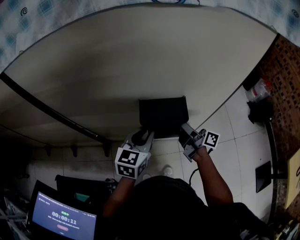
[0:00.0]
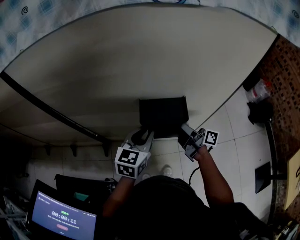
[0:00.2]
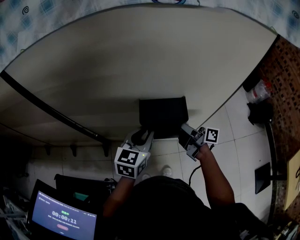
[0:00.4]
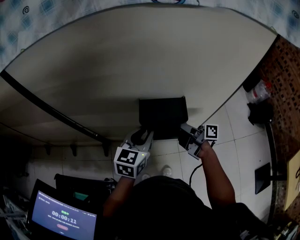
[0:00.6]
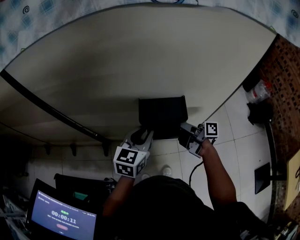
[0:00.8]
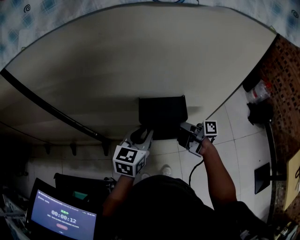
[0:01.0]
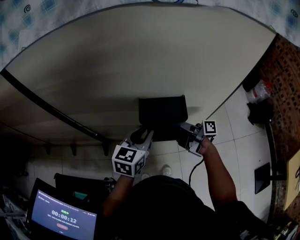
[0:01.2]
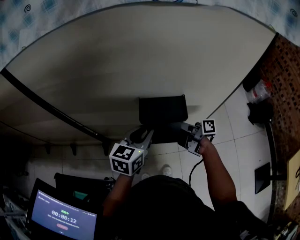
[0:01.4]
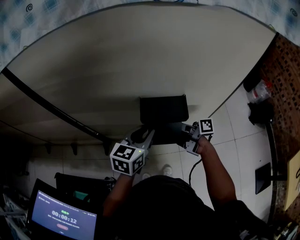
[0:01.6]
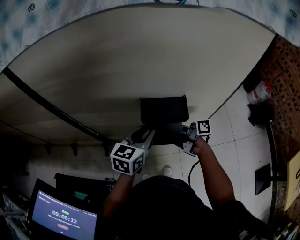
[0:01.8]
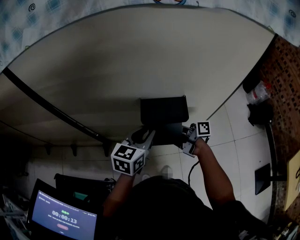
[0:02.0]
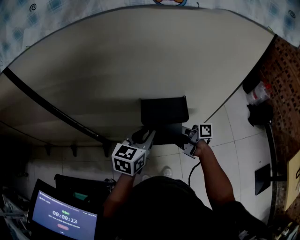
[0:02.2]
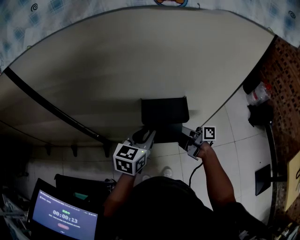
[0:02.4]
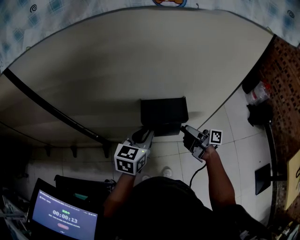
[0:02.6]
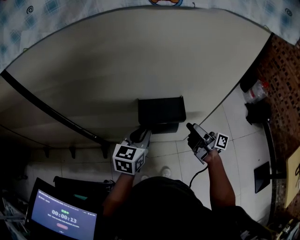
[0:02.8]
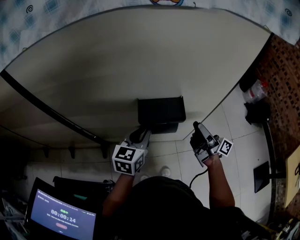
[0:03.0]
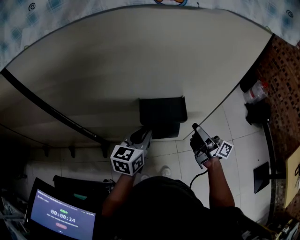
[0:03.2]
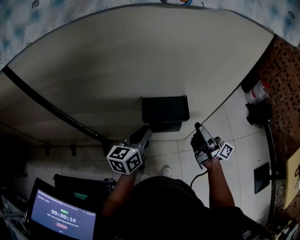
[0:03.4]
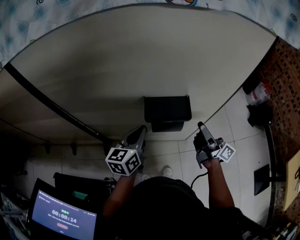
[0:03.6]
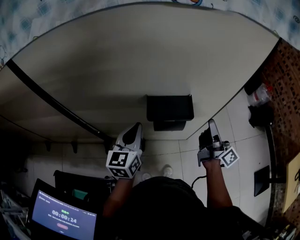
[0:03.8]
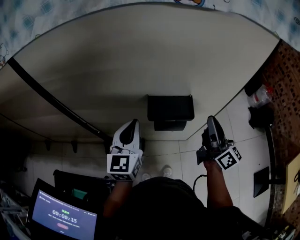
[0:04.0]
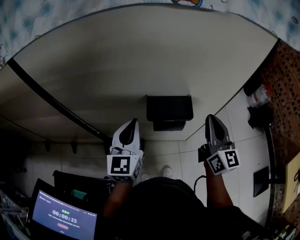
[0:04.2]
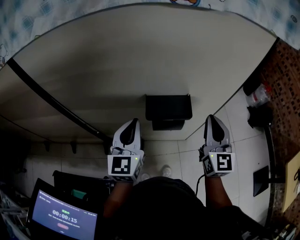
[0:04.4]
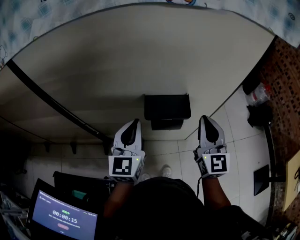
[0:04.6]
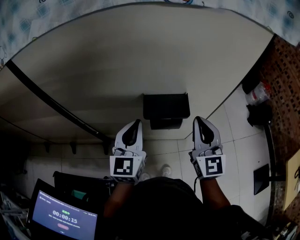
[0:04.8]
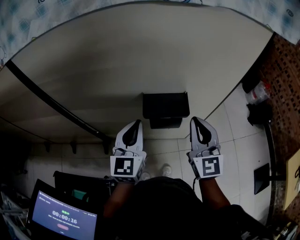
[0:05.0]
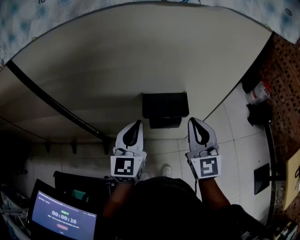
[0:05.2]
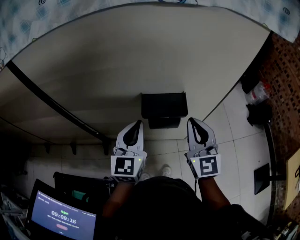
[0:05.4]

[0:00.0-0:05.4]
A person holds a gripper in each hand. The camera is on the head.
0:00.0 to 0:01.4: The right gripper rotates some 30 degrees.
0:01.4 to 0:02.8: The right gripper goes roughly 10 cm to the right, and swivels about 20 degrees.
0:02.8 to 0:04.0: The left gripper shifts roughly 10 cm upward and to the left, and rotates some 20 degrees. The right gripper is displaced upward by about 10 cm, twists roughly 40 degrees counterclockwise, seen from behind, and closes.
0:04.0 to 0:05.4: The right gripper travels to the left by approximately 10 cm, and rotates around the line of its fingers by some 50 degrees, counterclockwise from behind.

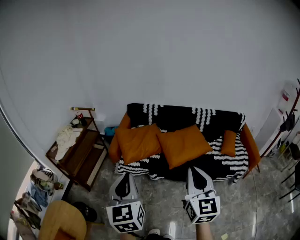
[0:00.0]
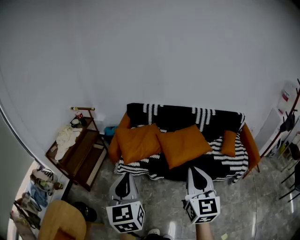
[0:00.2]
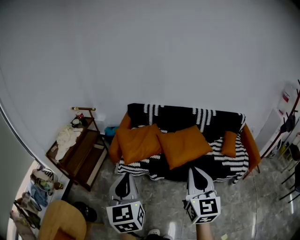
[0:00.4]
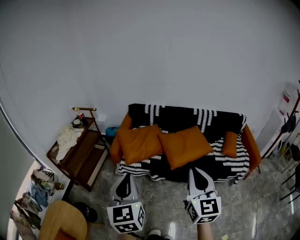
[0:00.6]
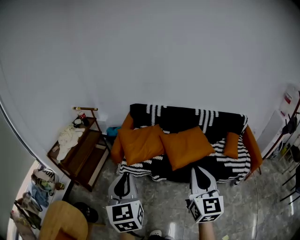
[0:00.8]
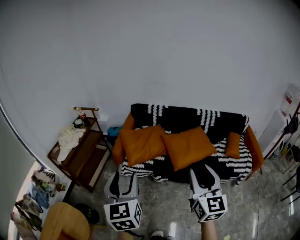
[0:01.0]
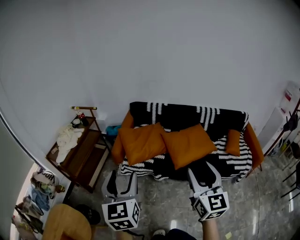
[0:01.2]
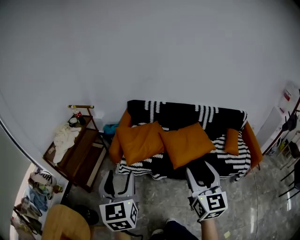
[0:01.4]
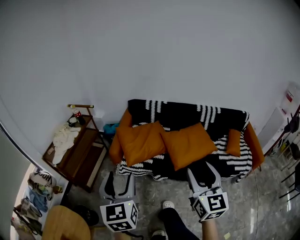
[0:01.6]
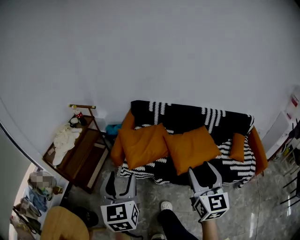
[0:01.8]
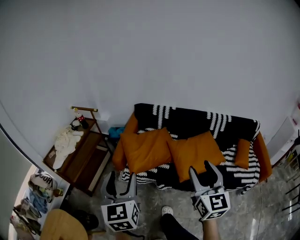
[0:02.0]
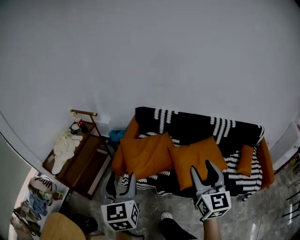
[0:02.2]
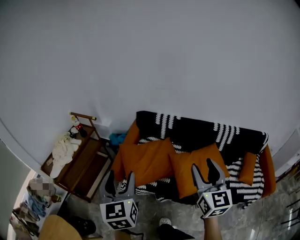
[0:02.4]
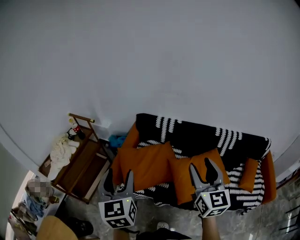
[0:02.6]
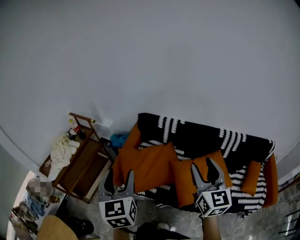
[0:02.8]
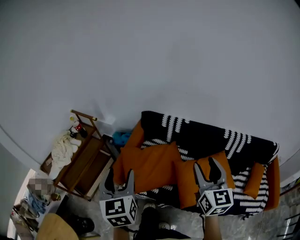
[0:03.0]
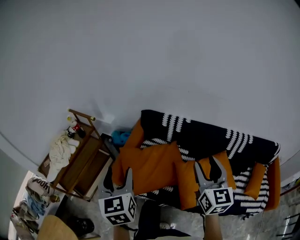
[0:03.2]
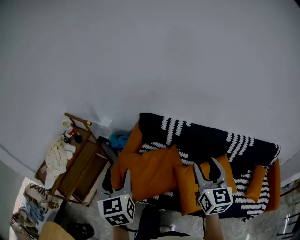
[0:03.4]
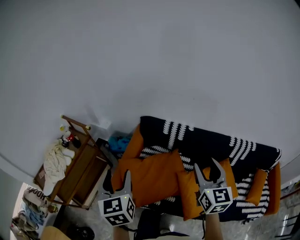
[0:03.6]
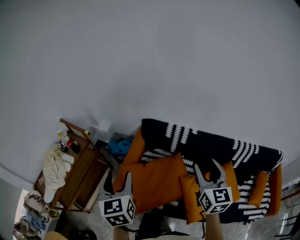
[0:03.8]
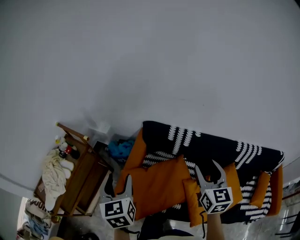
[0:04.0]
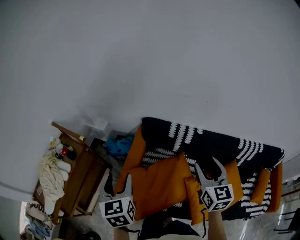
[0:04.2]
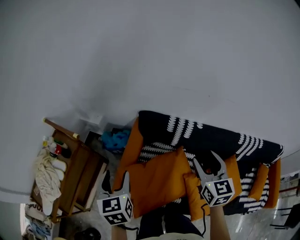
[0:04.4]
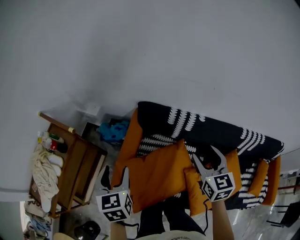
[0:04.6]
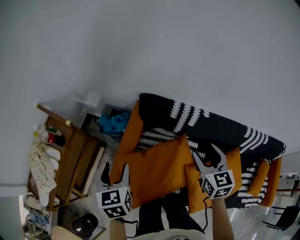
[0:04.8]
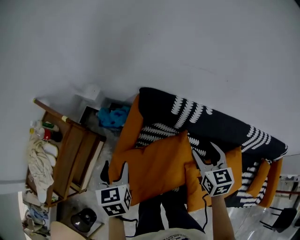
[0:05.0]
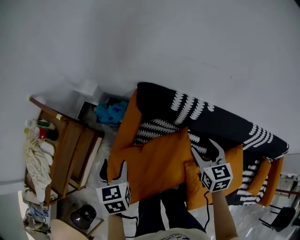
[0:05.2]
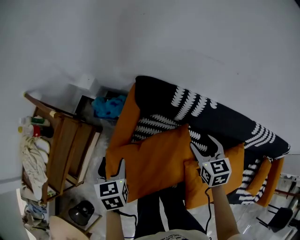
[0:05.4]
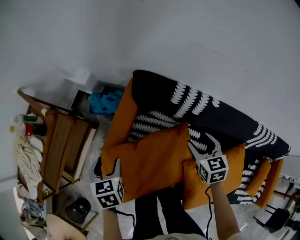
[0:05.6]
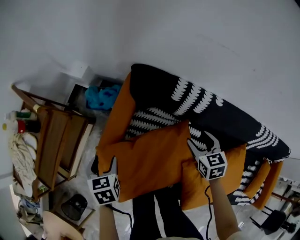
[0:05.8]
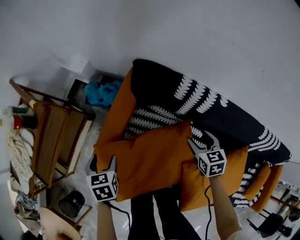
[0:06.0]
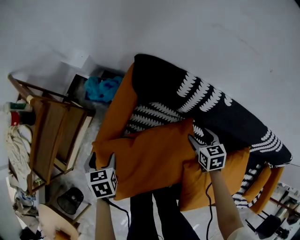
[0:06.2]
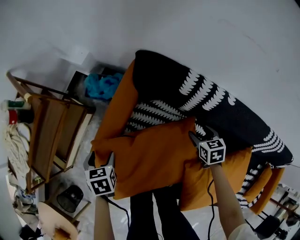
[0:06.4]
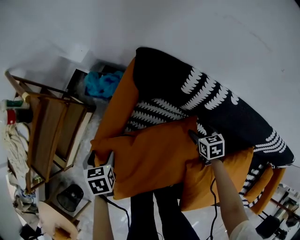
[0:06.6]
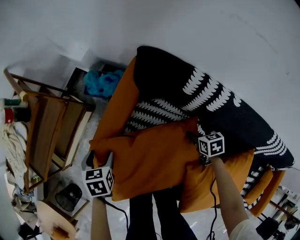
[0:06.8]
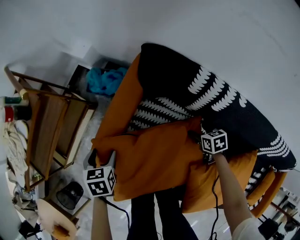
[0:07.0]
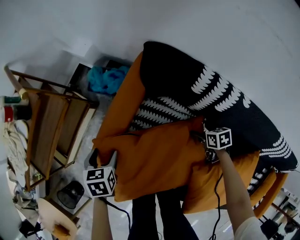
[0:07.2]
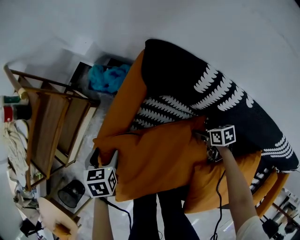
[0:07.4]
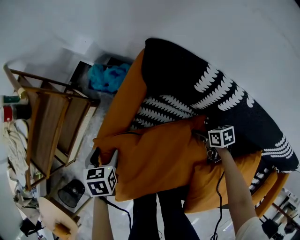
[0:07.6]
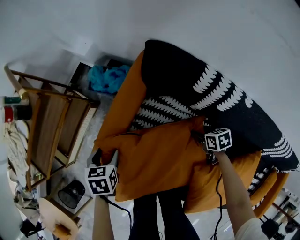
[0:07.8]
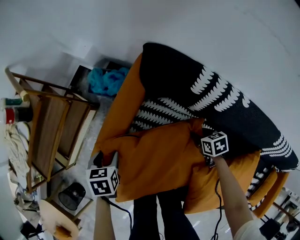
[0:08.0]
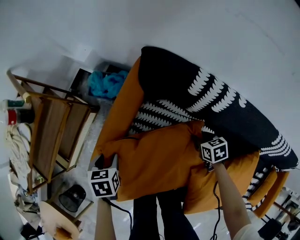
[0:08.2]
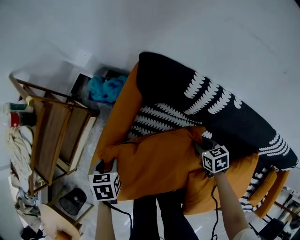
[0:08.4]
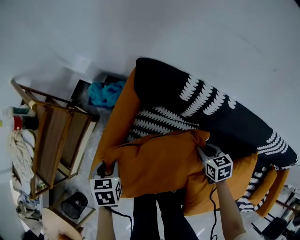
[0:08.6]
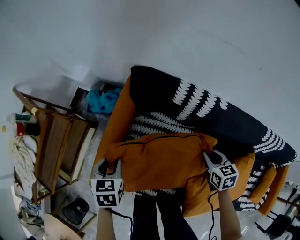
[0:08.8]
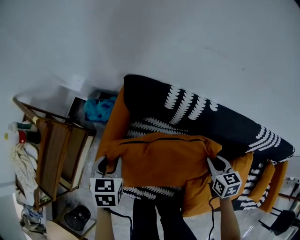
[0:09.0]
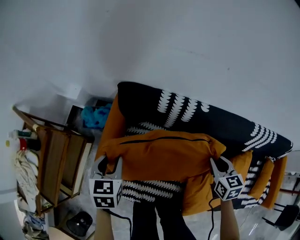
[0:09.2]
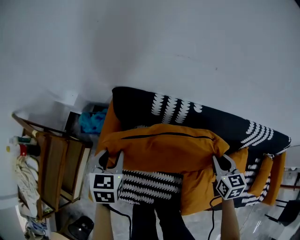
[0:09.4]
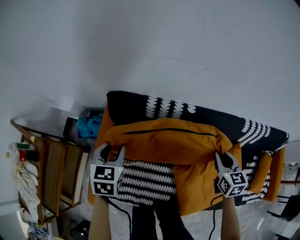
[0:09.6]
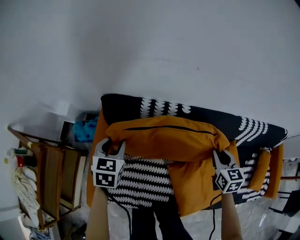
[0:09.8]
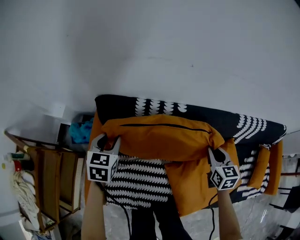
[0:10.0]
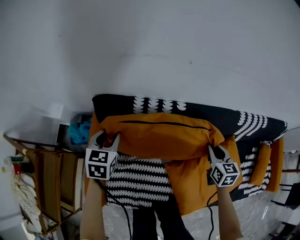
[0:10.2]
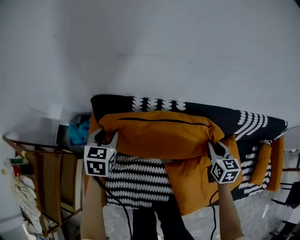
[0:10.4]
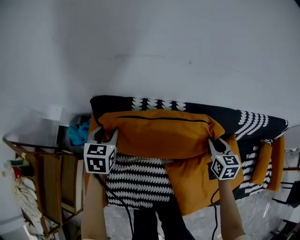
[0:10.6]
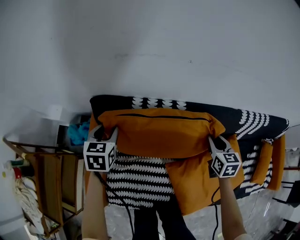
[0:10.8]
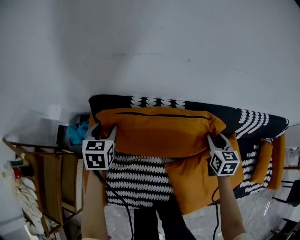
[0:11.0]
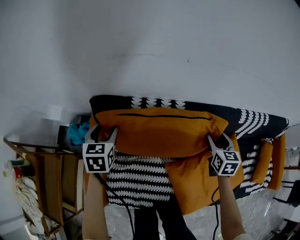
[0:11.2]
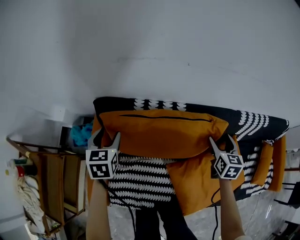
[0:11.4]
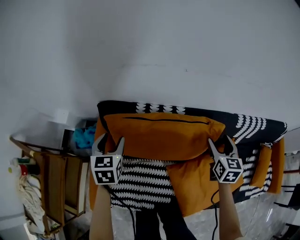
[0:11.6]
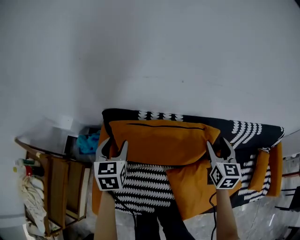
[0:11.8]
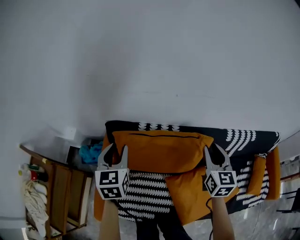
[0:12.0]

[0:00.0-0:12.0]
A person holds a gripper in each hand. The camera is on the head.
0:00.0 to 0:01.6: The right gripper moves forward, about 10 cm, and opens its fingers. Meanwhile the left gripper moves forward and to the left, approximately 10 cm, and opens.
0:01.6 to 0:03.0: Both grippers travel together forward, roughly 35 cm.
0:03.0 to 0:04.4: The right gripper moves forward, roughly 30 cm. The left gripper heads forward and downward, covering roughly 35 cm.
0:04.4 to 0:06.0: Both grippers move downward, approximately 30 cm. The right gripper swivels some 30 degrees; the left gripper changes its angle by roughly 30 degrees.
0:06.0 to 0:07.6: The right gripper travels downward by approximately 20 cm, and turns by about 30 degrees. Meanwhile the left gripper moves downward, about 10 cm.
0:07.6 to 0:09.0: The left gripper heads upward, covering some 15 cm, changes its angle by approximately 20 degrees, and closes up. The right gripper is displaced upward by some 25 cm, turns by some 40 degrees, and closes its fingers.
0:09.0 to 0:10.4: The right gripper shifts approximately 15 cm to the right and forward, and swivels some 20 degrees. The left gripper goes approximately 20 cm forward and to the right, and turns by roughly 20 degrees.
0:10.4 to 0:12.0: Both grippers move upward, approximately 20 cm. The right gripper opens and closes again.

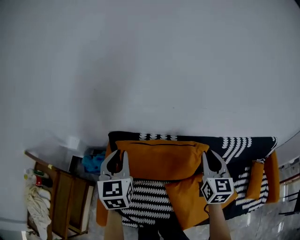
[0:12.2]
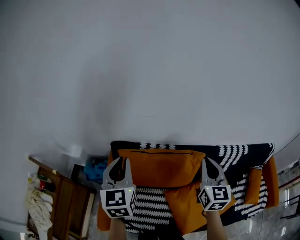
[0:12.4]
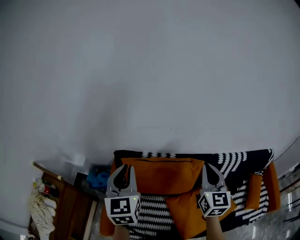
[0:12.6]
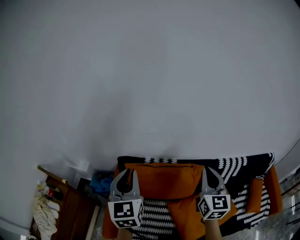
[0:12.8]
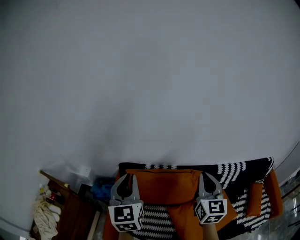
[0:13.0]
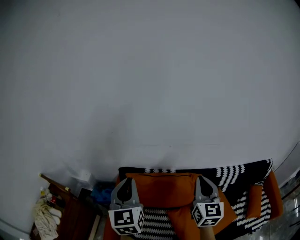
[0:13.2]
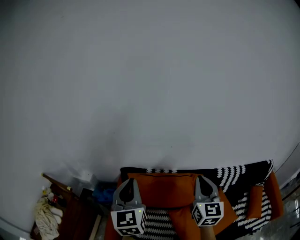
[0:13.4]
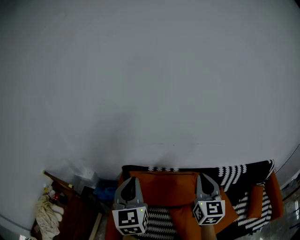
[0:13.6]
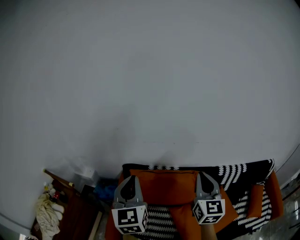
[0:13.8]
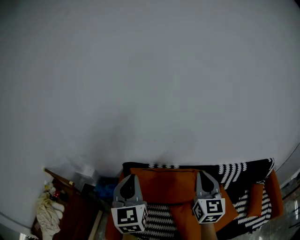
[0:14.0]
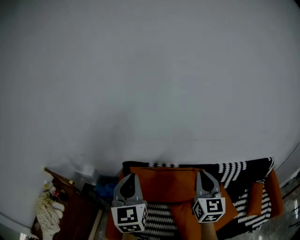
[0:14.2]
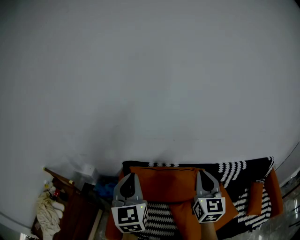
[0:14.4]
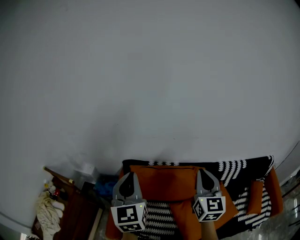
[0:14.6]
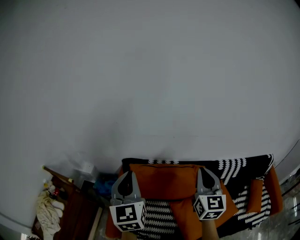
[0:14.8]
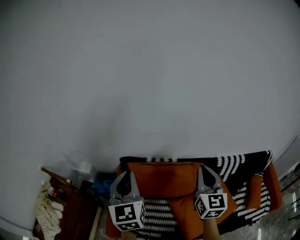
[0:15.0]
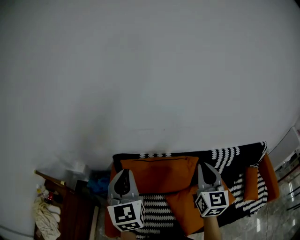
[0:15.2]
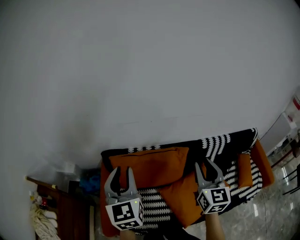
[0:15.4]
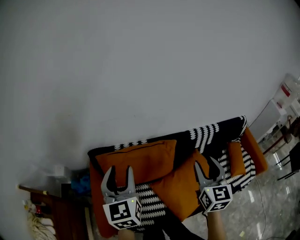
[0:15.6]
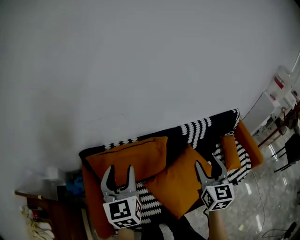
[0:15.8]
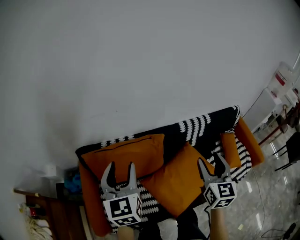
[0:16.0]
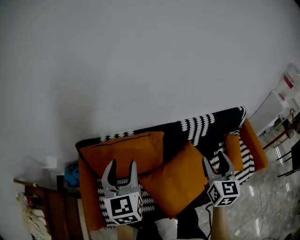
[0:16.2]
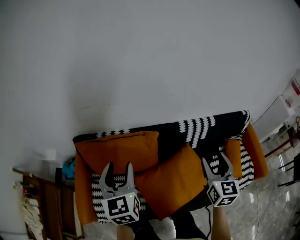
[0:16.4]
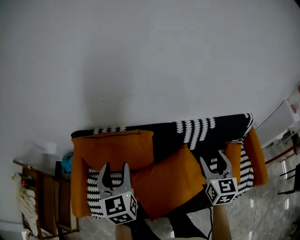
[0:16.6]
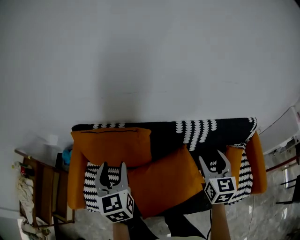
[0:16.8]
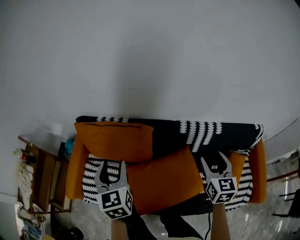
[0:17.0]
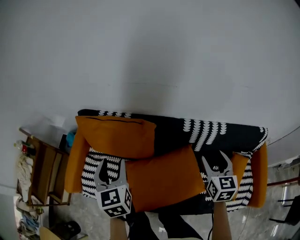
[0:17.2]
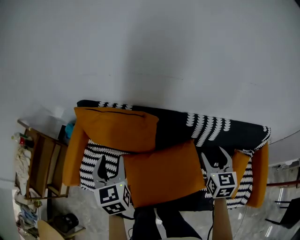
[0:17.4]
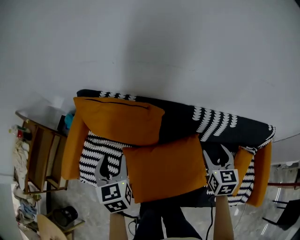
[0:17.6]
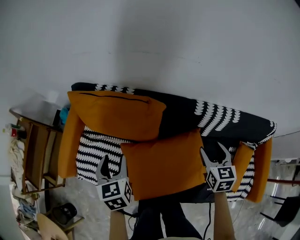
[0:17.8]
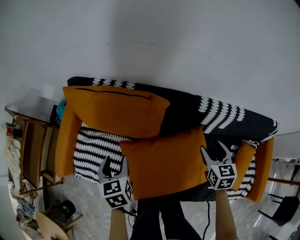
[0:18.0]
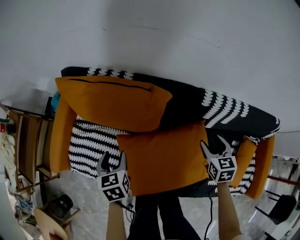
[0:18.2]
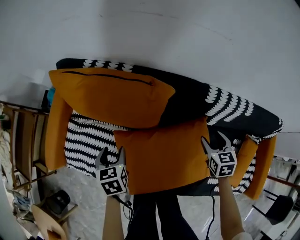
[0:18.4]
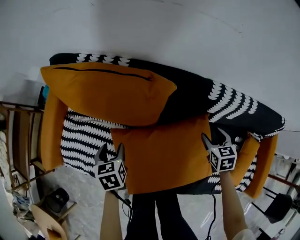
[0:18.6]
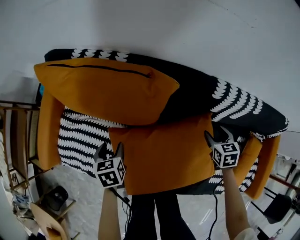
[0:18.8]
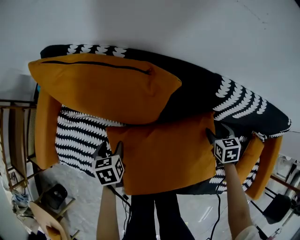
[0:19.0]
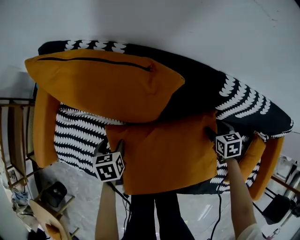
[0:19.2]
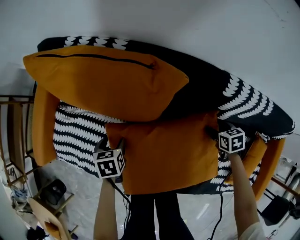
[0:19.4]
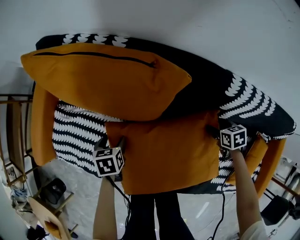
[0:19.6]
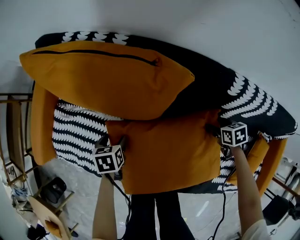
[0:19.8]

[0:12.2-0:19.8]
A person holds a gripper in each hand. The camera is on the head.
0:12.2 to 0:13.8: The two grippers go approximately 20 cm upward and backward.
0:13.8 to 0:15.2: There are only small adjustments of the grippers.
0:15.2 to 0:16.8: The left gripper shifts some 30 cm to the right and downward, and opens up. Meanwhile the right gripper moves to the right, about 35 cm, and opens its fingers.
0:16.8 to 0:18.2: Both grippers travel together downward, approximately 30 cm. The left gripper points its fingers about 30 degrees further downward; the right gripper swivels about 30 degrees.
0:18.2 to 0:19.8: The two grippers go roughly 25 cm downward. The left gripper turns by roughly 20 degrees, while the right gripper turns by approximately 30 degrees.
